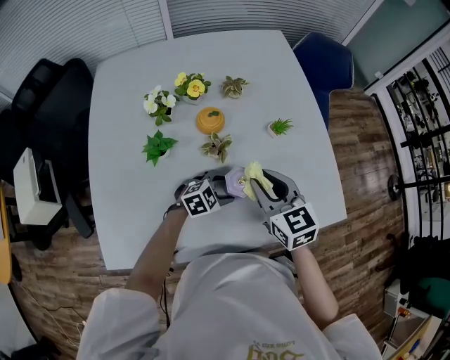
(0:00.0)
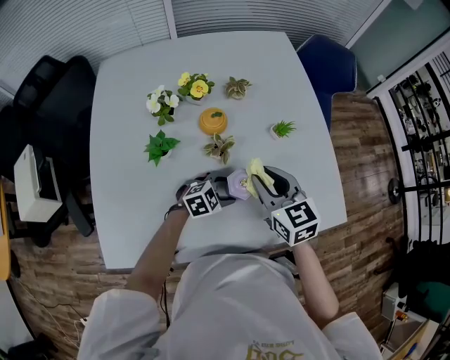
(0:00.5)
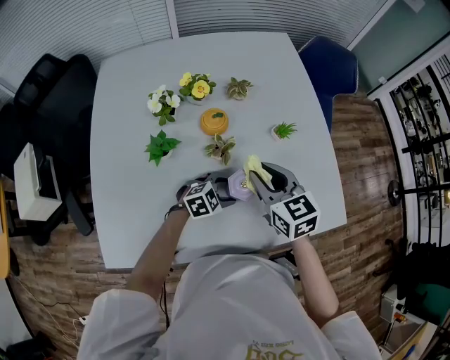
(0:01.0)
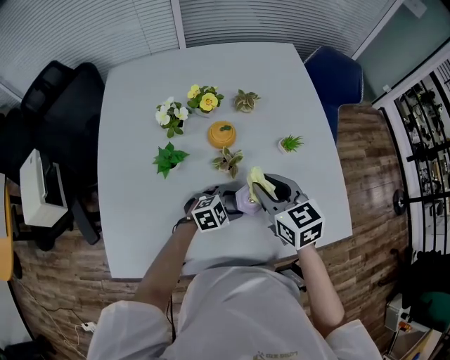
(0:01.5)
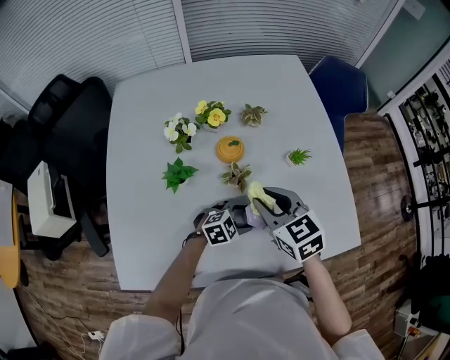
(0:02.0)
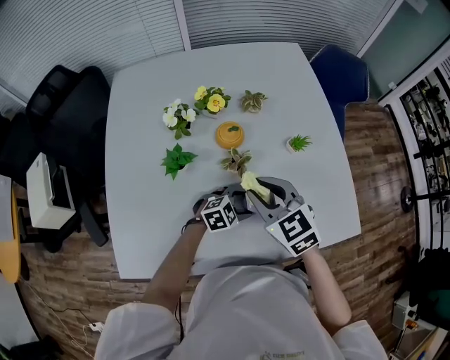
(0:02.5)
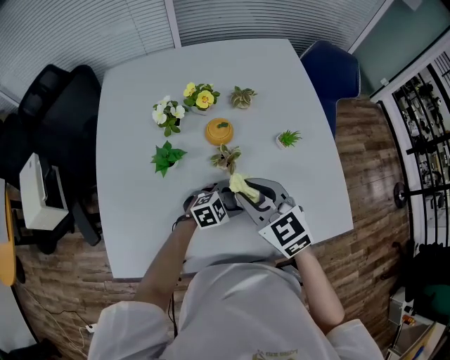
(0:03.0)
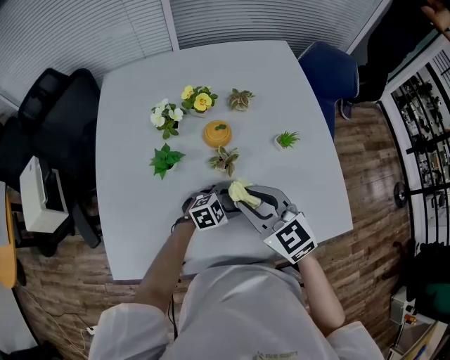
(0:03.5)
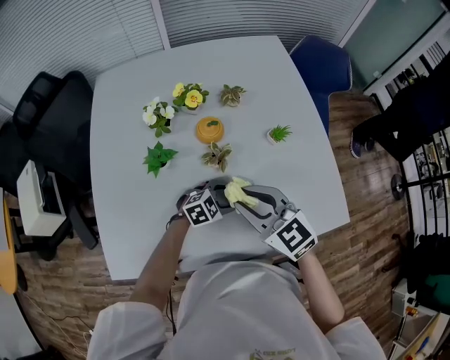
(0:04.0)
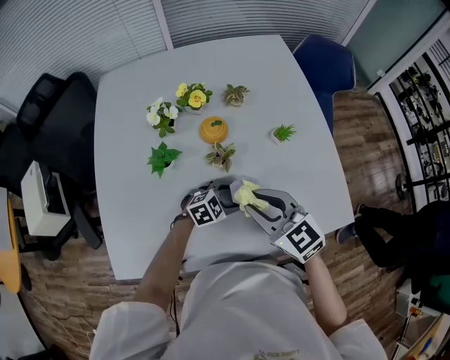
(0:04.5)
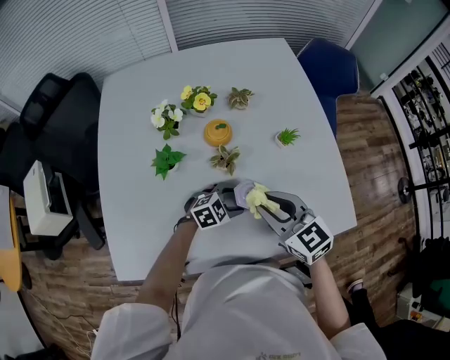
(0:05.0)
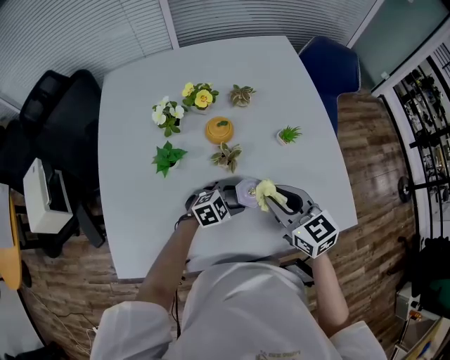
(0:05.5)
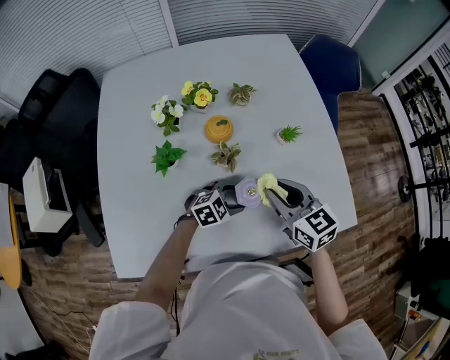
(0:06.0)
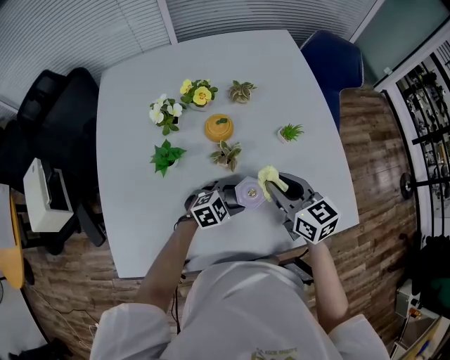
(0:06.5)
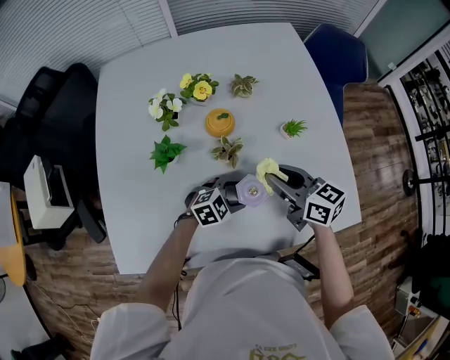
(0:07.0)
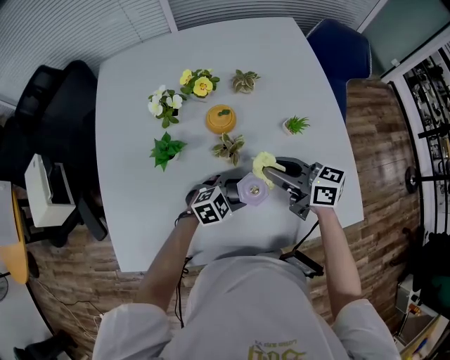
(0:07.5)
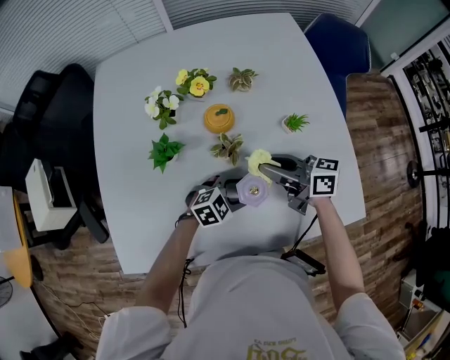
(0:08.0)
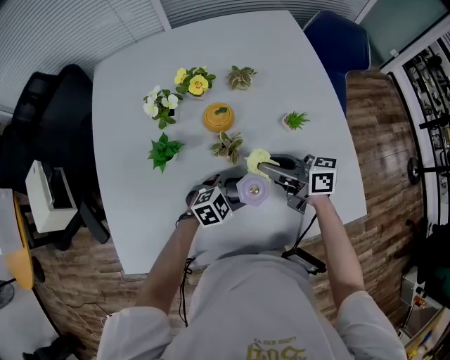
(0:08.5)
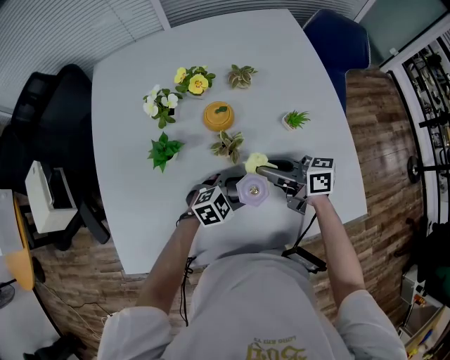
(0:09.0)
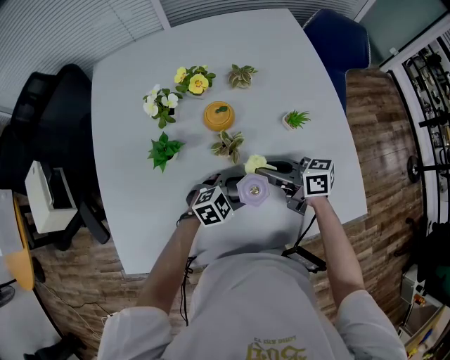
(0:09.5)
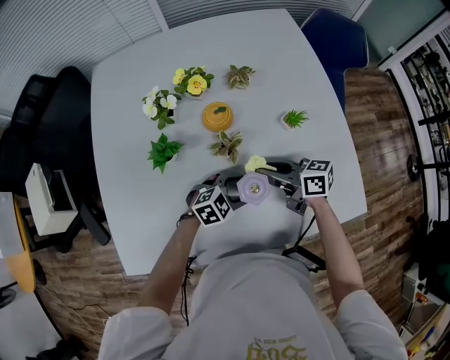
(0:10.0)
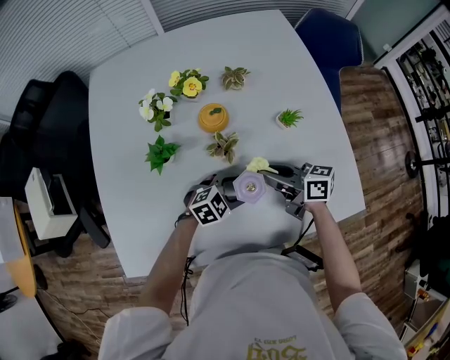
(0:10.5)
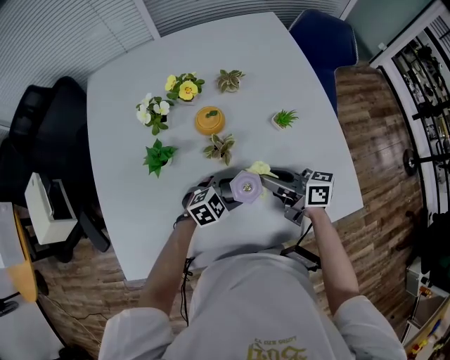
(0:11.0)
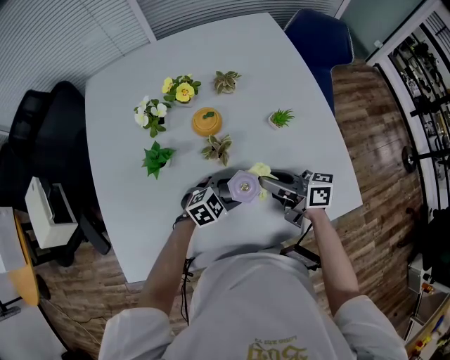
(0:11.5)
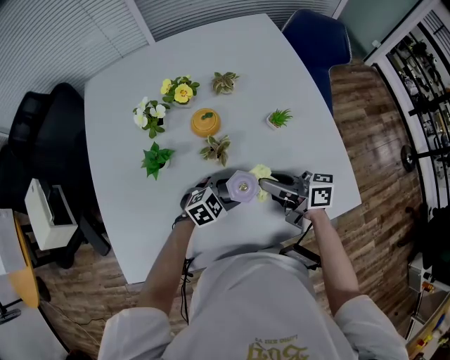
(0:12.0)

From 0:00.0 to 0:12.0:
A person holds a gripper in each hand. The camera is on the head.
From 0:00.0 to 0:02.0: The right gripper is displaced to the left by some 5 cm.
From 0:02.0 to 0:04.0: The right gripper moves backward, approximately 5 cm.
From 0:04.0 to 0:06.0: The right gripper is displaced to the right and forward by approximately 10 cm.
From 0:06.0 to 0:08.0: The right gripper shifts by some 5 cm, and rotates about 40 degrees.
From 0:08.0 to 0:10.0: The right gripper travels downward by roughly 5 cm.
From 0:10.0 to 0:12.0: The right gripper moves approximately 5 cm.

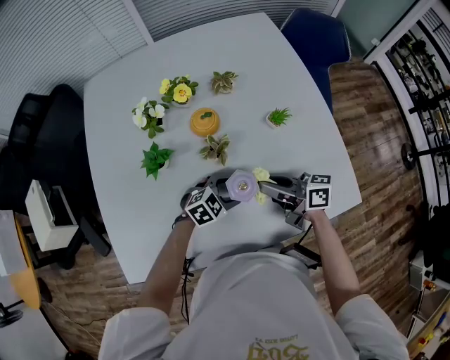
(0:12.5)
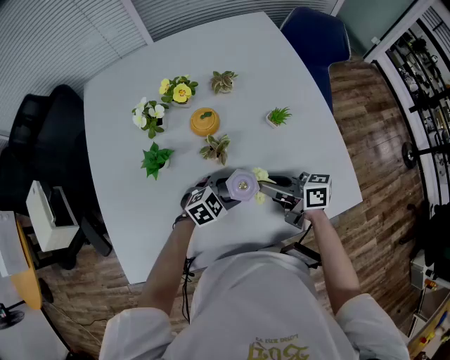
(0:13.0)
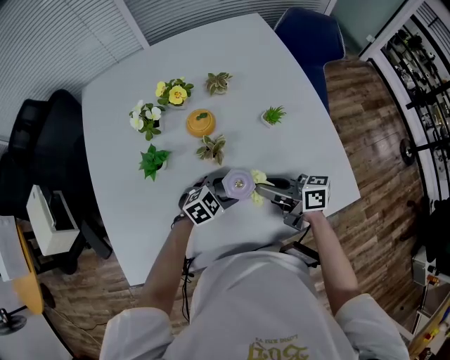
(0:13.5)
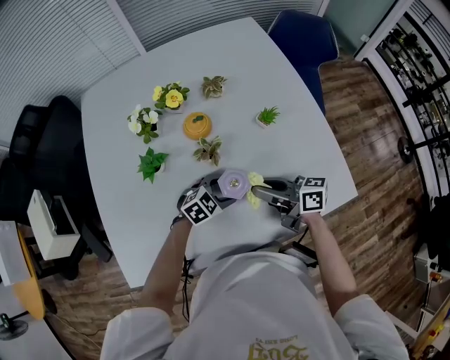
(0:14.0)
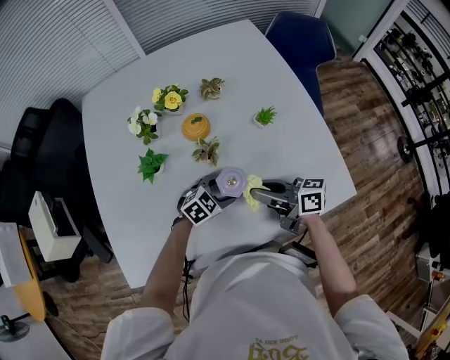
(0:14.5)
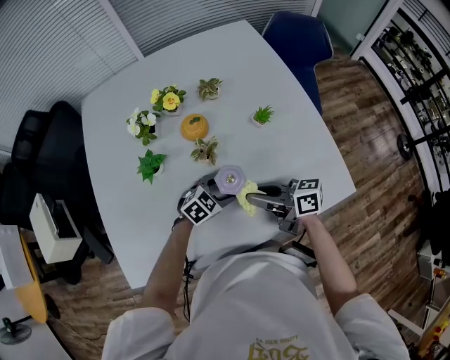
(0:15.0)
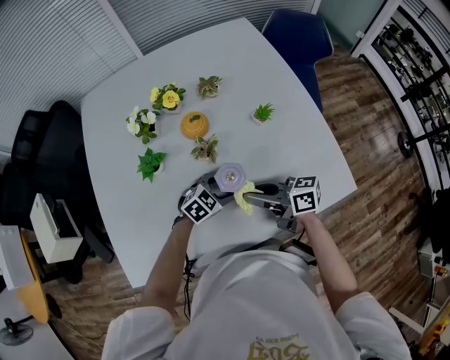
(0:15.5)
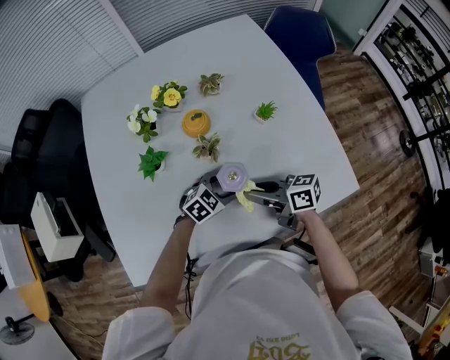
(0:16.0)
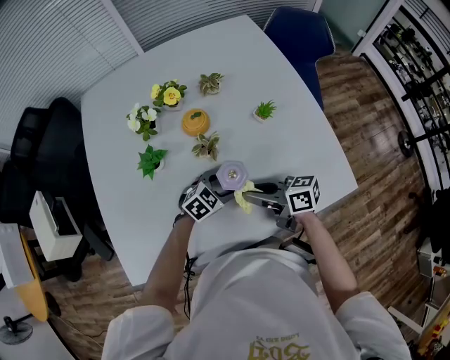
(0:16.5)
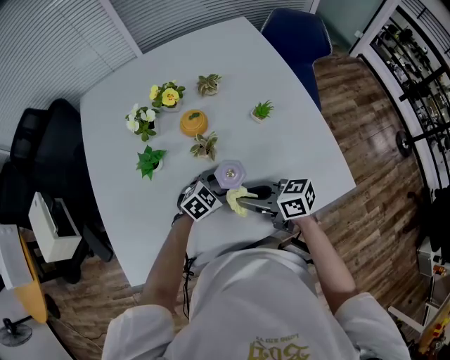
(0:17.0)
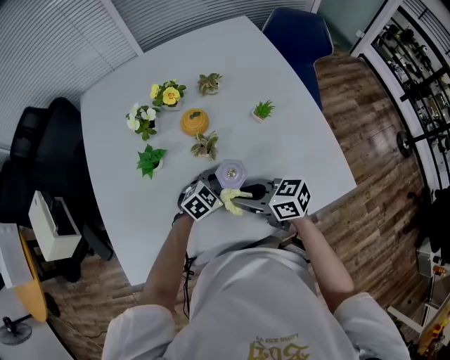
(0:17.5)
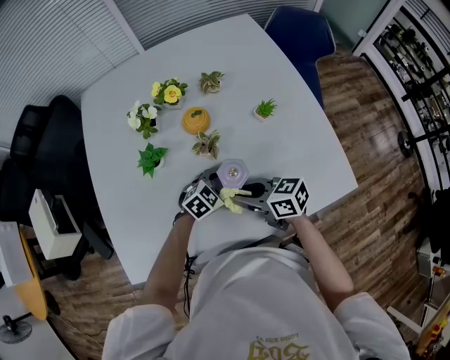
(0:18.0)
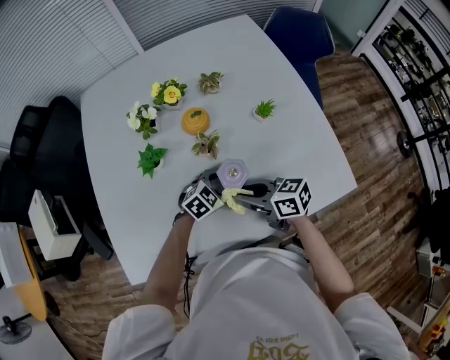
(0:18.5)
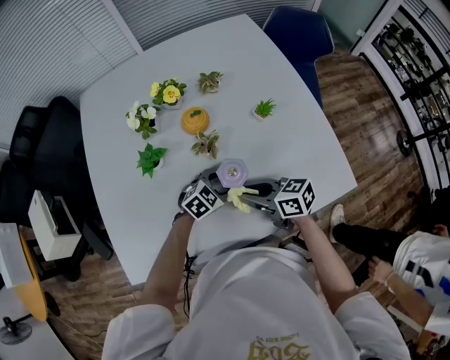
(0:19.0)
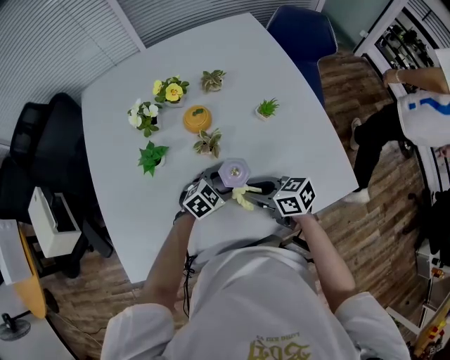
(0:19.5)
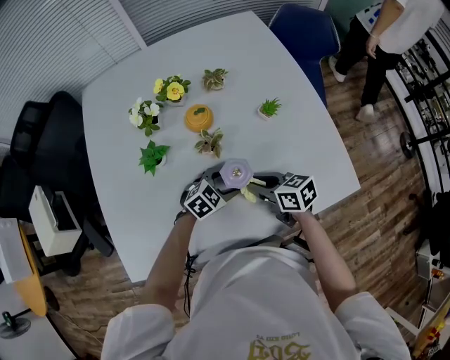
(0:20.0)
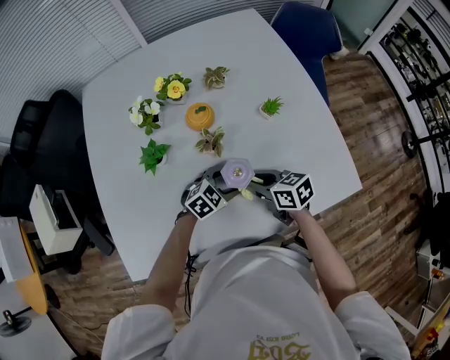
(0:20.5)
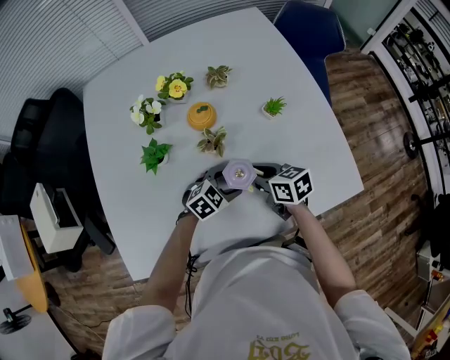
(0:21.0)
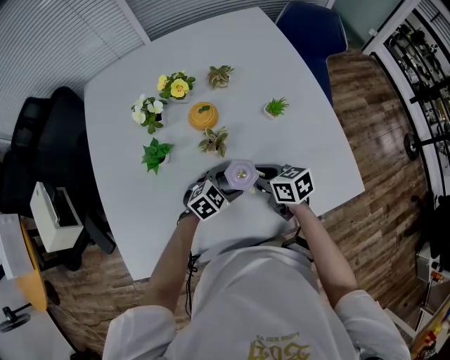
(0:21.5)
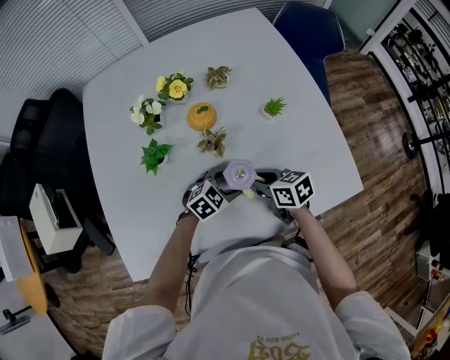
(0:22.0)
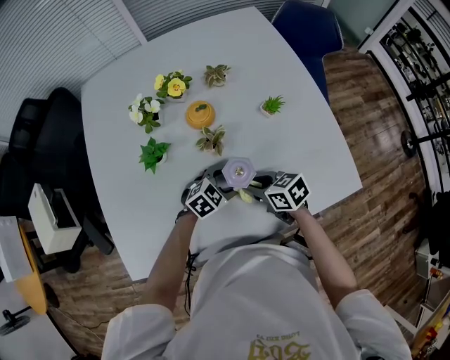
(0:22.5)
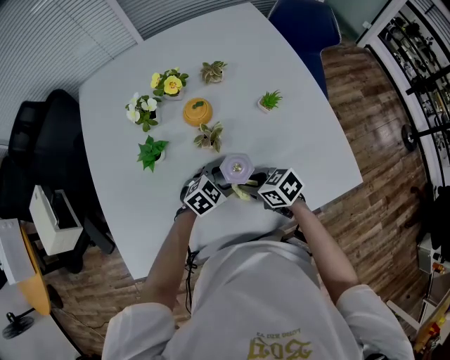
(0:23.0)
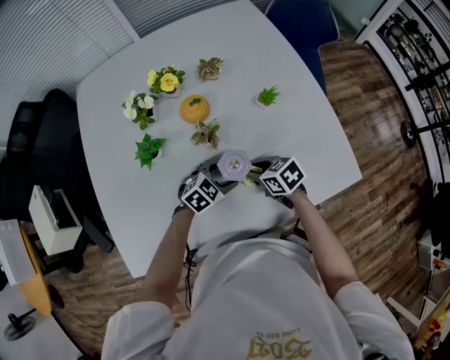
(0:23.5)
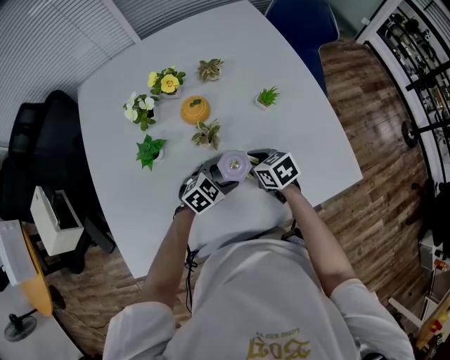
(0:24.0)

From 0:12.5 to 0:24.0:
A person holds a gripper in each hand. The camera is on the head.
From 0:12.5 to 0:16.5: The grippers stay close to where they were, moving slightly.
From 0:16.5 to 0:18.5: The grippers move only a little.
From 0:18.5 to 0:20.0: The right gripper changes place by roughly 5 cm.
From 0:20.0 to 0:22.0: The grippers move only a little.
From 0:22.0 to 0:24.0: The grippers stay close to where they were, moving slightly.

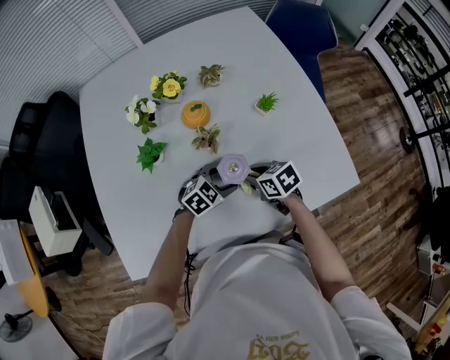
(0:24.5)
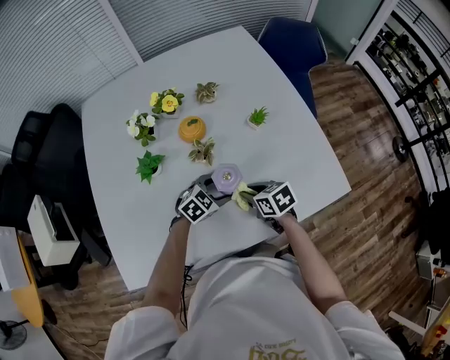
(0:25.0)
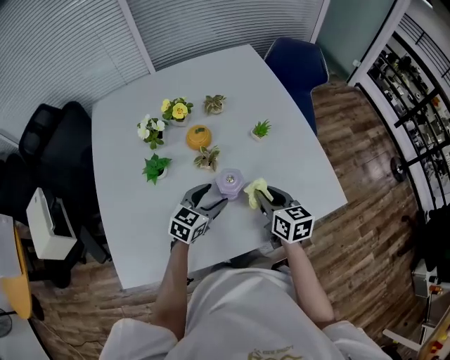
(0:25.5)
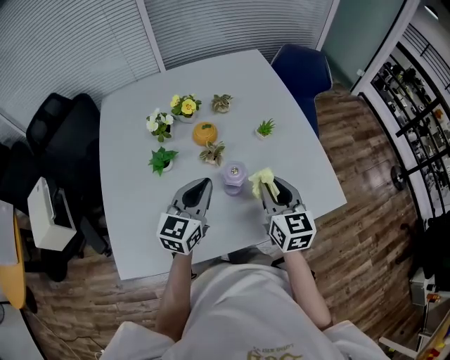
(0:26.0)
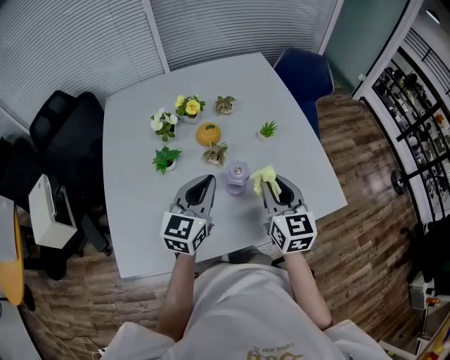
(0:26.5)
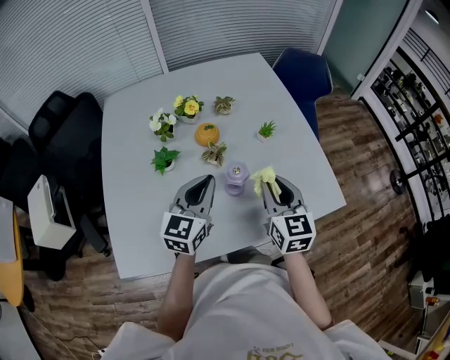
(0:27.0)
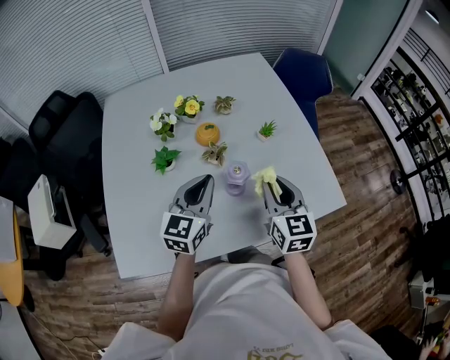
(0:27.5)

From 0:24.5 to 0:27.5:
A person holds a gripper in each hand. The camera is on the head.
From 0:24.5 to 0:26.0: The two grippers go roughly 20 cm upward. The right gripper swivels about 50 degrees; the left gripper points its fingers roughly 40 degrees further upward, and closes.
From 0:26.0 to 0:27.5: There are only small adjustments of the grippers.

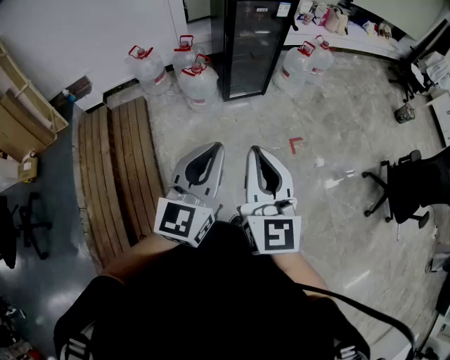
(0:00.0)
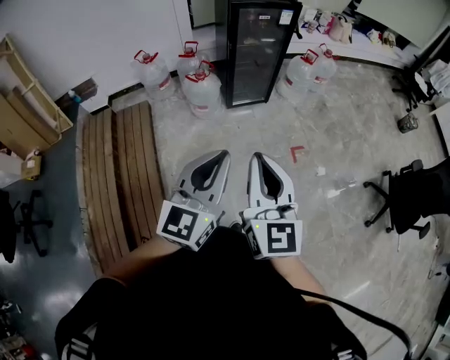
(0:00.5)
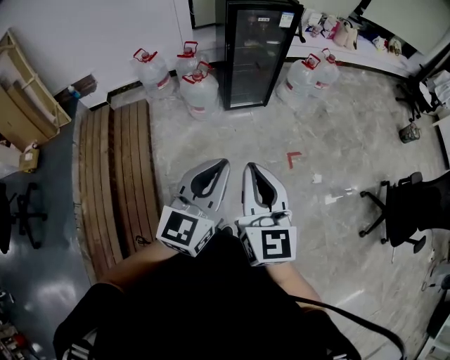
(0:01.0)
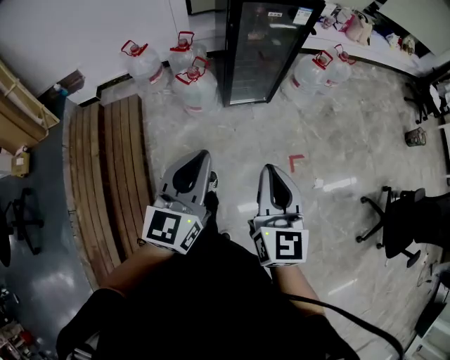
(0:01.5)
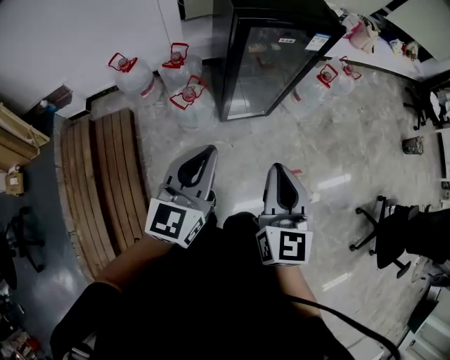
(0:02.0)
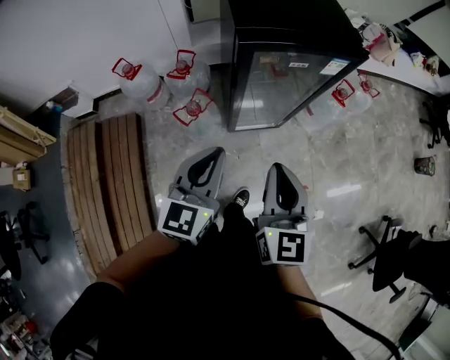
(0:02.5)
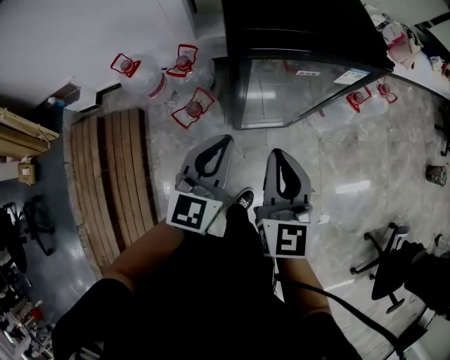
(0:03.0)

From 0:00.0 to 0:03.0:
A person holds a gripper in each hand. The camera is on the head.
From 0:00.0 to 0:01.5: The left gripper shifts some 20 cm forward; the right gripper travels forward and downward by approximately 25 cm.
From 0:01.5 to 0:03.0: Both grippers are carried forward, approximately 50 cm.